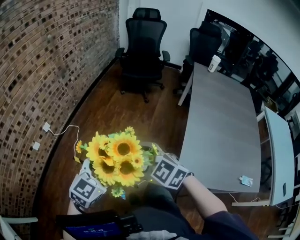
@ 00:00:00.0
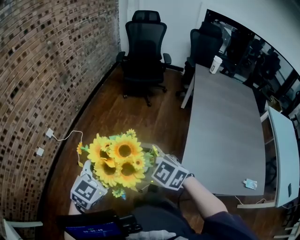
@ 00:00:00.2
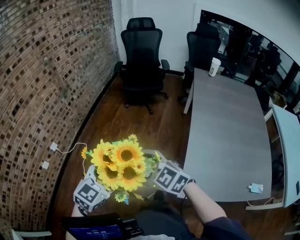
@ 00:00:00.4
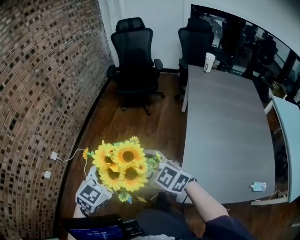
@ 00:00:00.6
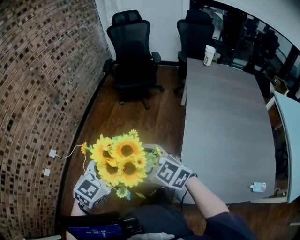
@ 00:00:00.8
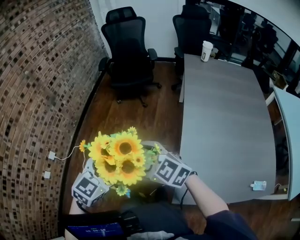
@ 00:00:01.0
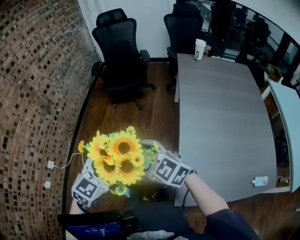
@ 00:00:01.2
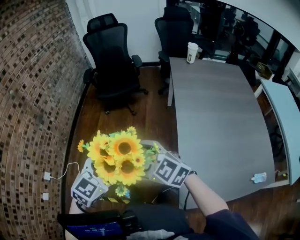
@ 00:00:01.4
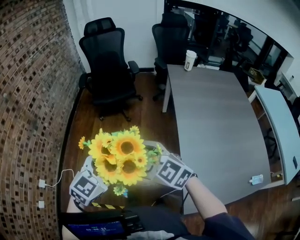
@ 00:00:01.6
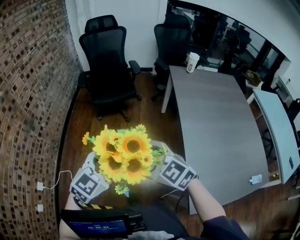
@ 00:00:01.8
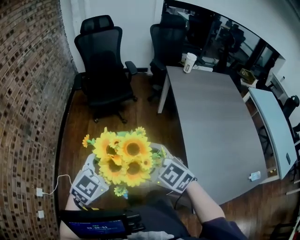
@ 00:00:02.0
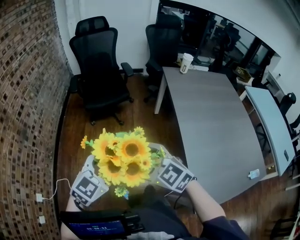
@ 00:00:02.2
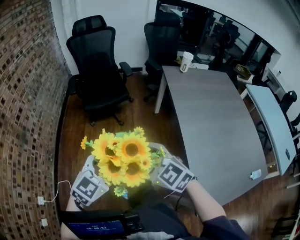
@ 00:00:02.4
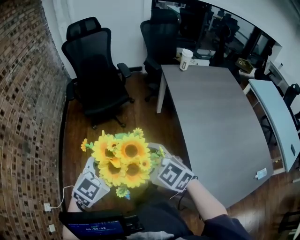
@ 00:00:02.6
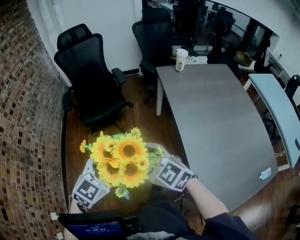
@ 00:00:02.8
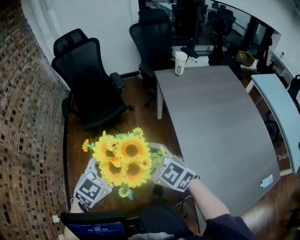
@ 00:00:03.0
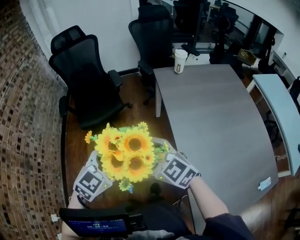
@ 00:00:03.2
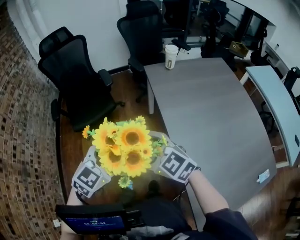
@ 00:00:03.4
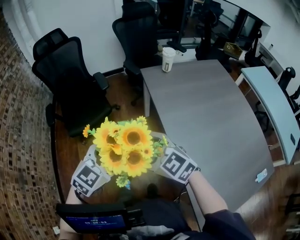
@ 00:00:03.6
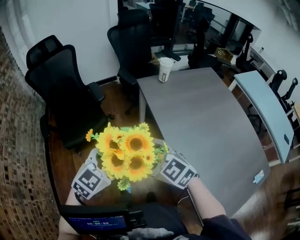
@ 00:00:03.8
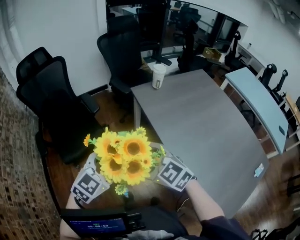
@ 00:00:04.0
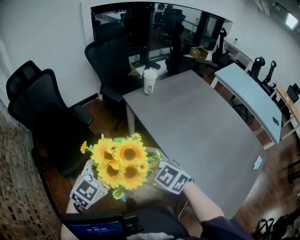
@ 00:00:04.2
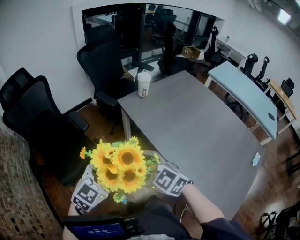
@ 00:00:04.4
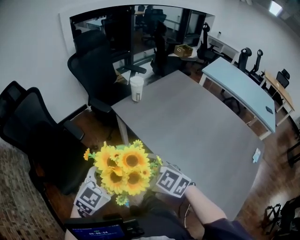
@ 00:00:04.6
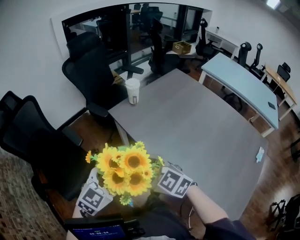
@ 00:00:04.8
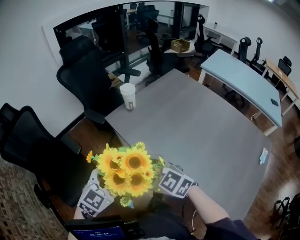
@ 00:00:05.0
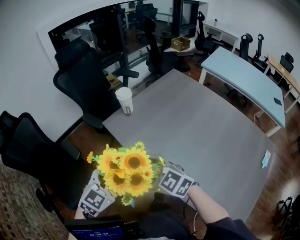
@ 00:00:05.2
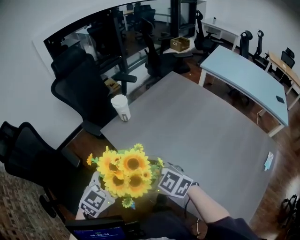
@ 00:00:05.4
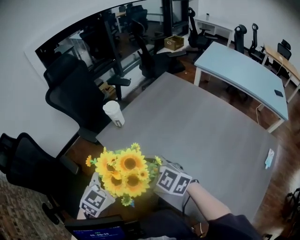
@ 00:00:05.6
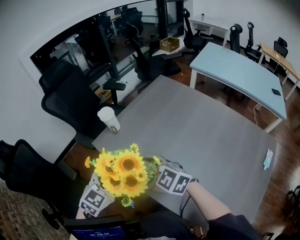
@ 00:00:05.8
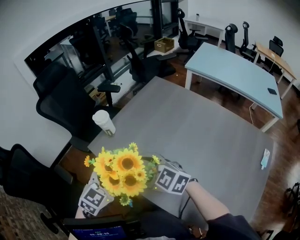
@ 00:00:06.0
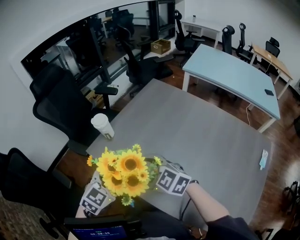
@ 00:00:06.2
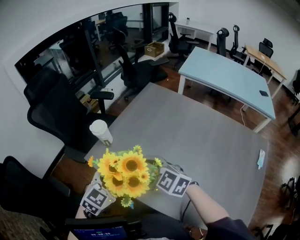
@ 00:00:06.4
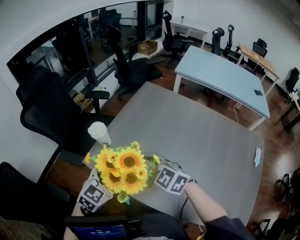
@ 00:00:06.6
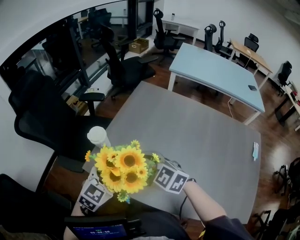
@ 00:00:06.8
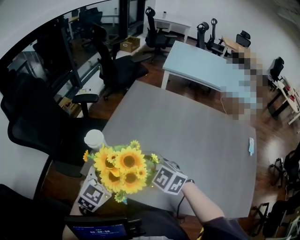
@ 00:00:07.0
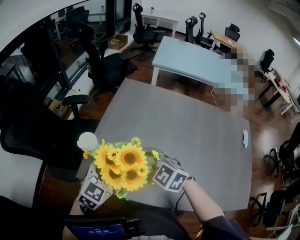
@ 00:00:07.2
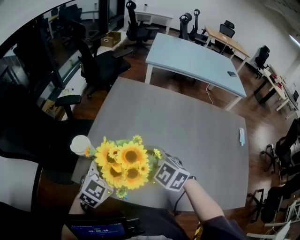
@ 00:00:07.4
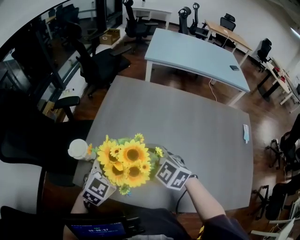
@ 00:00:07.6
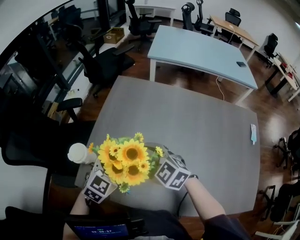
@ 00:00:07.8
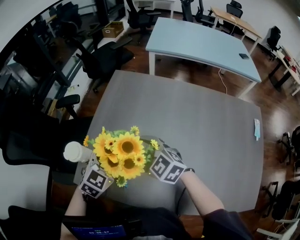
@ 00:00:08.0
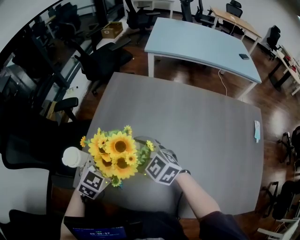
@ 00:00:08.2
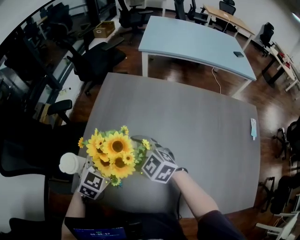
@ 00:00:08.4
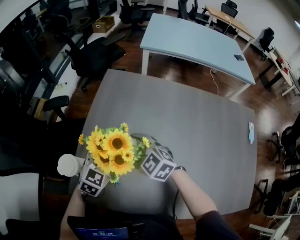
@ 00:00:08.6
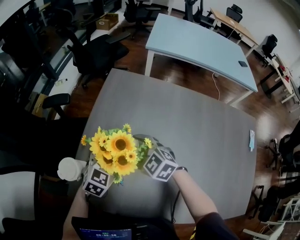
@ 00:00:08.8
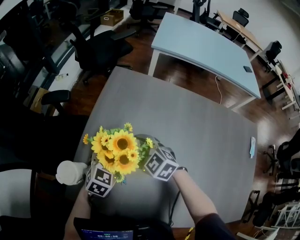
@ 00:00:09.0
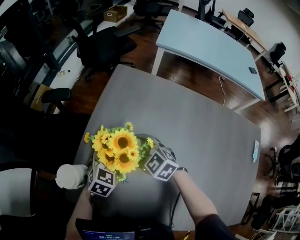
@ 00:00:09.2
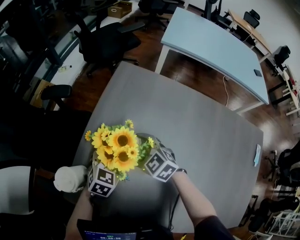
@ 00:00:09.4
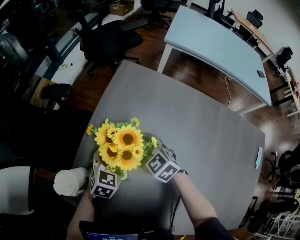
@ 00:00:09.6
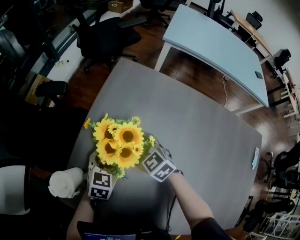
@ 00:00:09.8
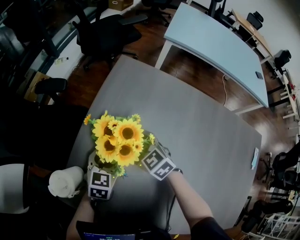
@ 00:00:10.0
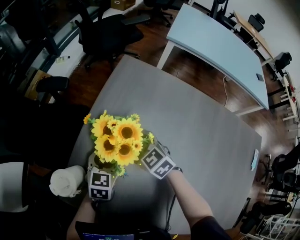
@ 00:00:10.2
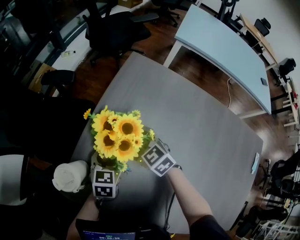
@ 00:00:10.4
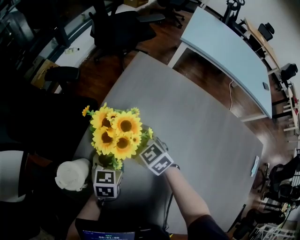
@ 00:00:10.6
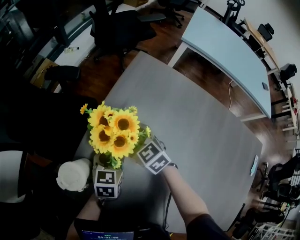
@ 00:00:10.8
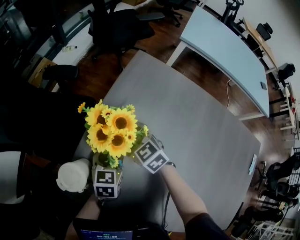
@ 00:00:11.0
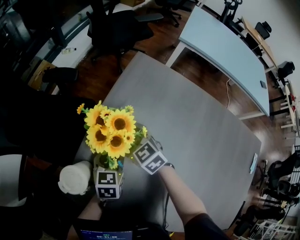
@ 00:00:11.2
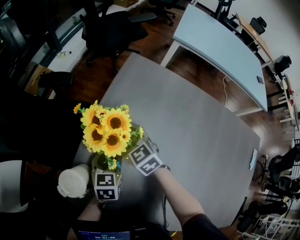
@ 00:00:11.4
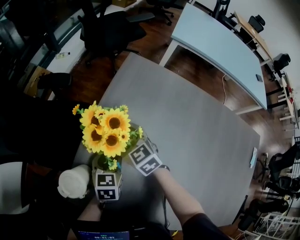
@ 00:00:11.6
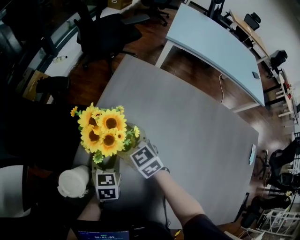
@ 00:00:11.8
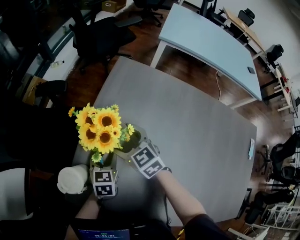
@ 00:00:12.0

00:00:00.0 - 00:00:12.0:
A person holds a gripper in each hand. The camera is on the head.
00:00:00.0 - 00:00:01.6: Both grippers travel together forward and to the right, some 30 cm. The right gripper turns by about 20 degrees. The left gripper changes its angle by some 20 degrees.
00:00:01.6 - 00:00:03.0: Both grippers travel together forward, about 20 cm.
00:00:03.0 - 00:00:04.4: The left gripper moves about 25 cm, and swivels roughly 30 degrees, while the right gripper changes place by some 20 cm, and rotates about 30 degrees.
00:00:04.4 - 00:00:06.0: Both grippers travel together forward and to the right, about 30 cm.
00:00:06.0 - 00:00:07.6: The right gripper changes place by roughly 15 cm, and rotates approximately 30 degrees, while the left gripper ends up about 20 cm from where it was, and turns by about 30 degrees.
00:00:07.6 - 00:00:09.0: The two grippers go approximately 20 cm forward and downward.
00:00:09.0 - 00:00:10.4: The left gripper moves about 5 cm, rotates roughly 30 degrees, and closes up, while the right gripper travels forward and downward by roughly 10 cm.
00:00:10.4 - 00:00:12.0: There are only small adjustments of the grippers.

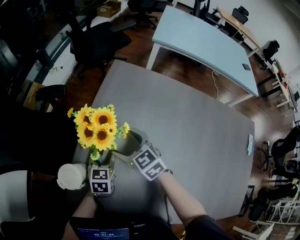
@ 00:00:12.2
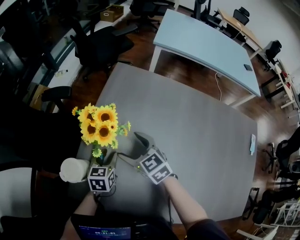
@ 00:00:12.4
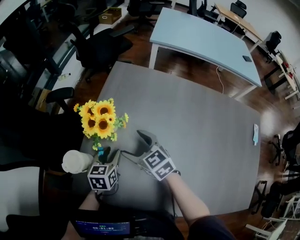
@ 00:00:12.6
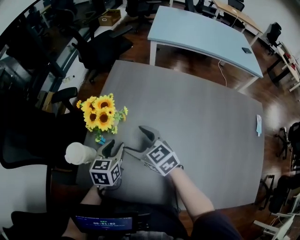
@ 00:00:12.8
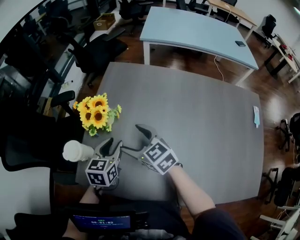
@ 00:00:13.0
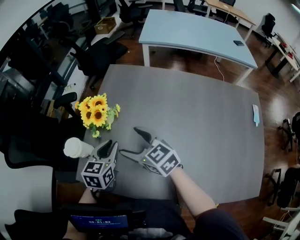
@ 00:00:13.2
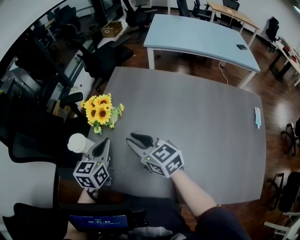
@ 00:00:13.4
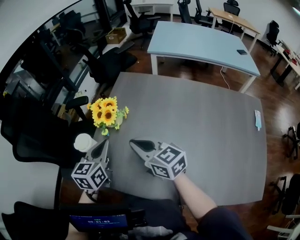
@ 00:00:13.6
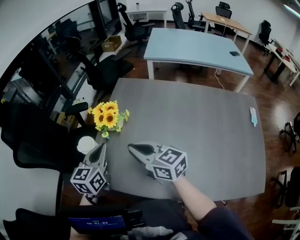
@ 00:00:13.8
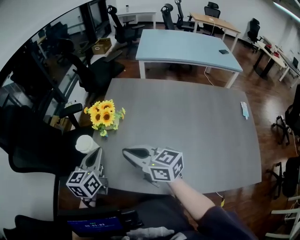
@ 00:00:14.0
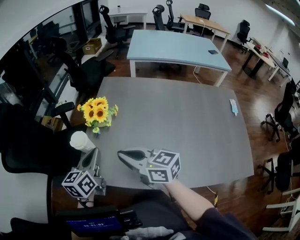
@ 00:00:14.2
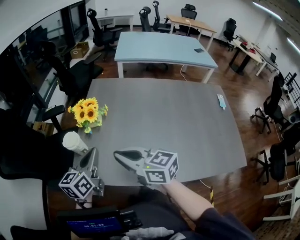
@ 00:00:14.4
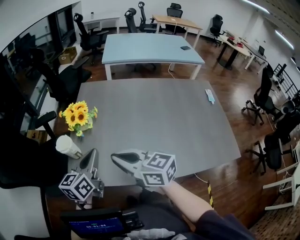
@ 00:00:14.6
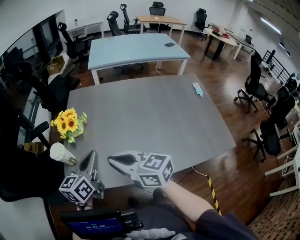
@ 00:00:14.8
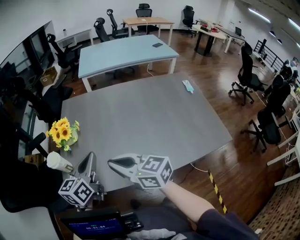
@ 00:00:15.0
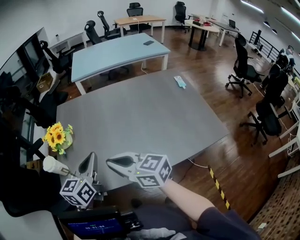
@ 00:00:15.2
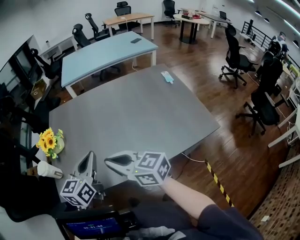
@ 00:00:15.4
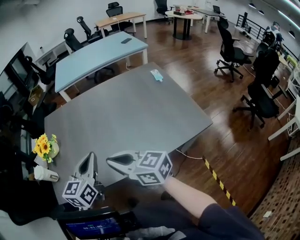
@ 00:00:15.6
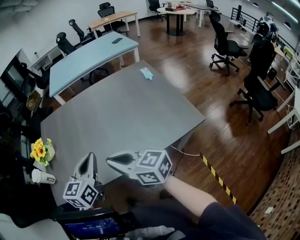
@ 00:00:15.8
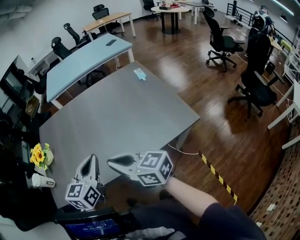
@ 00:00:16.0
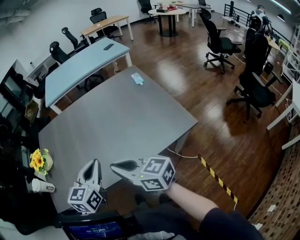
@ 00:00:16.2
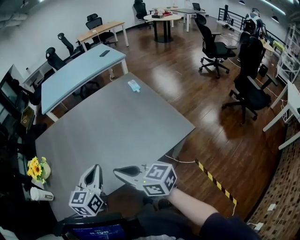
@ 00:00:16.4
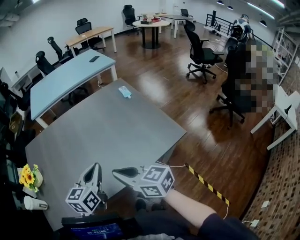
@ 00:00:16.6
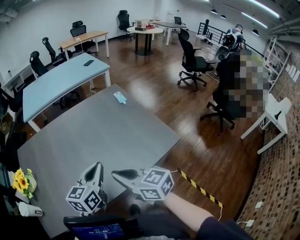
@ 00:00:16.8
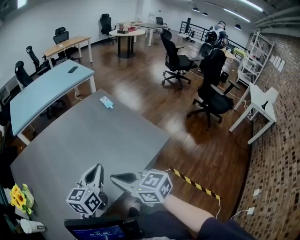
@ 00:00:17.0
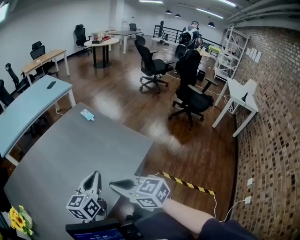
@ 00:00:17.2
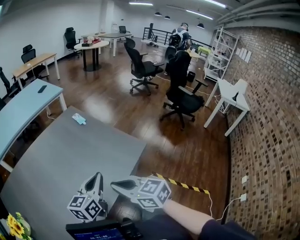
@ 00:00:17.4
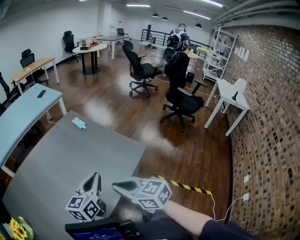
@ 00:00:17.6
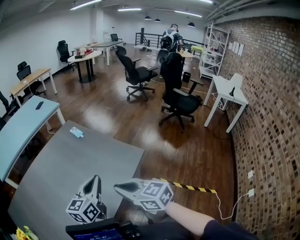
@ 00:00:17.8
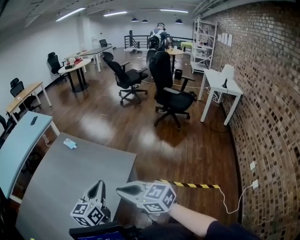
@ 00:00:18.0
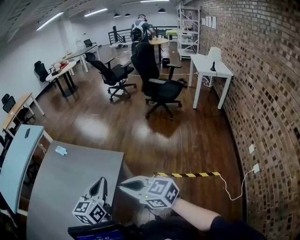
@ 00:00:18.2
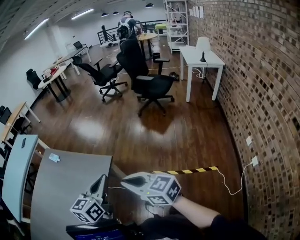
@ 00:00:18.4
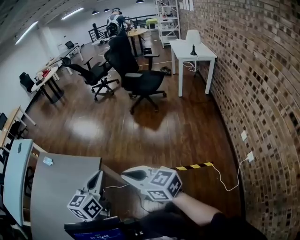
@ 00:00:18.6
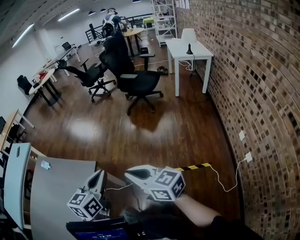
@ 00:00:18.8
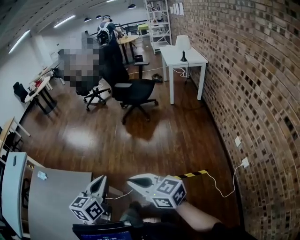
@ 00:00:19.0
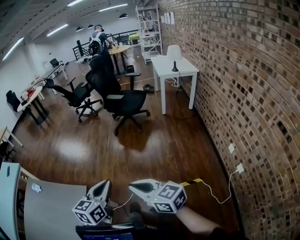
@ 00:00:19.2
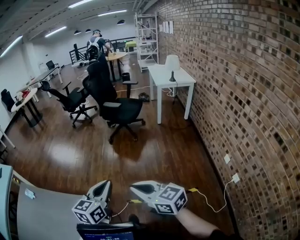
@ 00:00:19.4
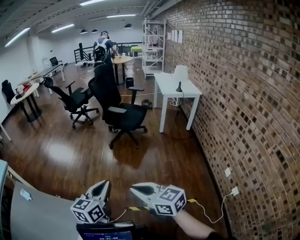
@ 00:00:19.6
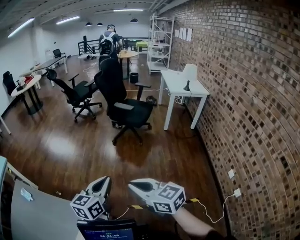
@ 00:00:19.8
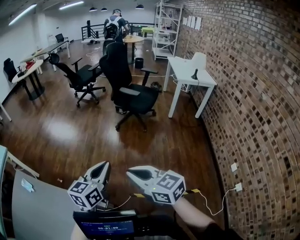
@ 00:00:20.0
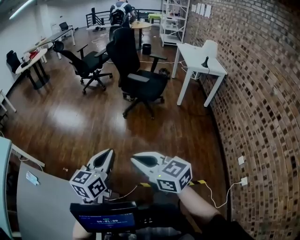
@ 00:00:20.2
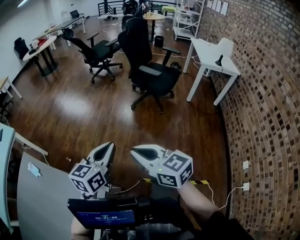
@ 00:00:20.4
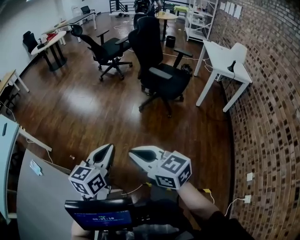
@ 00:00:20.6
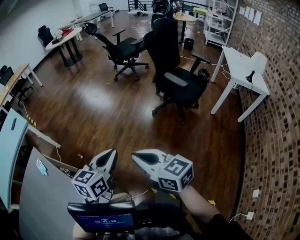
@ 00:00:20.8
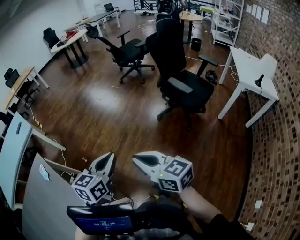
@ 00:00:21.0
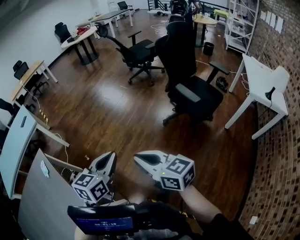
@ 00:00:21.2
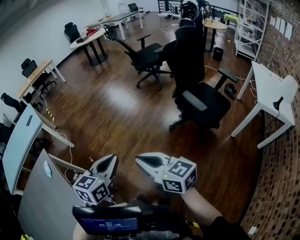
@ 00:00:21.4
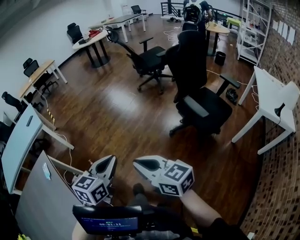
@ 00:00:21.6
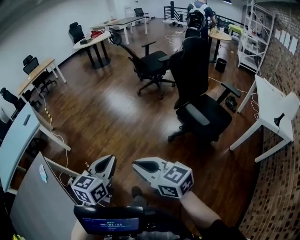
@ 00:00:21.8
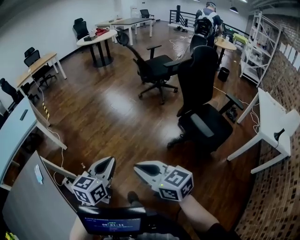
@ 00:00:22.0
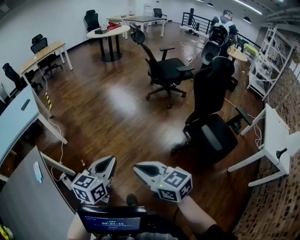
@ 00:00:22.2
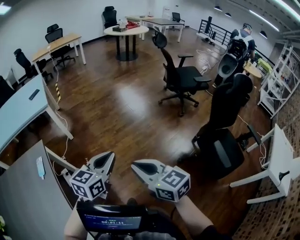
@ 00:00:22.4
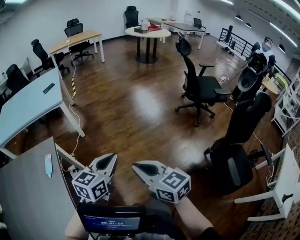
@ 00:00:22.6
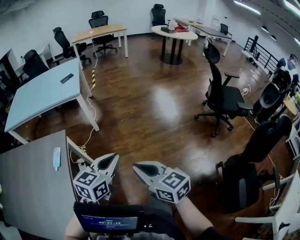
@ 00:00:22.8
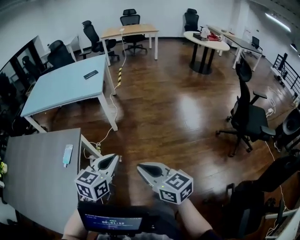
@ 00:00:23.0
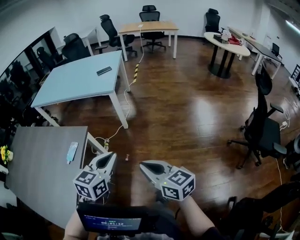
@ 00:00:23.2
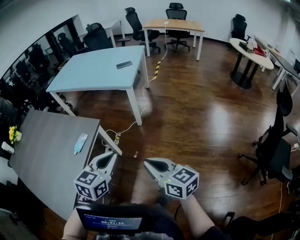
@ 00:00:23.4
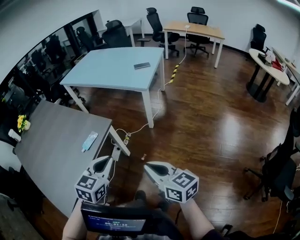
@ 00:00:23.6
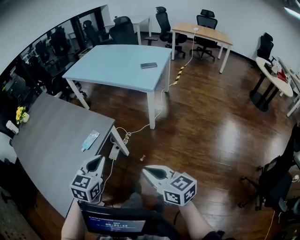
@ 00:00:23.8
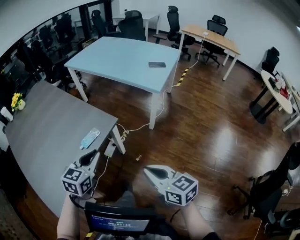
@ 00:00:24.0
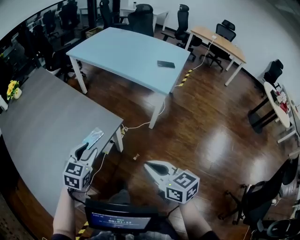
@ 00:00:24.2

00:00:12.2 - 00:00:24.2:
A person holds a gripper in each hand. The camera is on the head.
00:00:12.2 - 00:00:13.8: The right gripper goes roughly 25 cm backward and upward, swivels some 30 degrees, and closes its fingers, while the left gripper moves upward and backward, some 25 cm, changes its angle by roughly 20 degrees, and closes.
00:00:13.8 - 00:00:15.2: The right gripper goes about 20 cm backward; the left gripper heads backward and to the right, covering some 20 cm, and turns by roughly 30 degrees.
00:00:15.2 - 00:00:16.6: The two grippers go about 25 cm to the right. The right gripper changes its angle by roughly 20 degrees.
00:00:16.6 - 00:00:18.2: The right gripper shifts by some 25 cm, and rotates some 40 degrees. Meanwhile the left gripper changes place by some 30 cm, and rotates roughly 40 degrees.
00:00:18.2 - 00:00:19.8: The right gripper changes place by some 35 cm, and swivels about 30 degrees. Meanwhile the left gripper ends up approximately 40 cm from where it was, and rotates about 20 degrees.
00:00:19.8 - 00:00:21.2: The left gripper ends up roughly 30 cm from where it was, and turns by some 30 degrees. Meanwhile the right gripper moves approximately 35 cm, and turns by approximately 30 degrees.
00:00:21.2 - 00:00:22.6: The grippers both shift forward and to the left by about 35 cm. The right gripper rotates about 30 degrees. The left gripper turns by approximately 30 degrees.
00:00:22.6 - 00:00:24.2: The left gripper moves roughly 40 cm, changes its angle by approximately 70 degrees, and opens its fingers. Meanwhile the right gripper moves roughly 35 cm, and rotates about 50 degrees.
